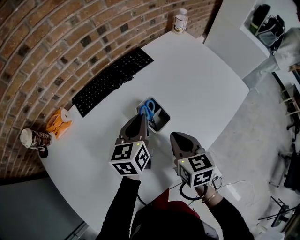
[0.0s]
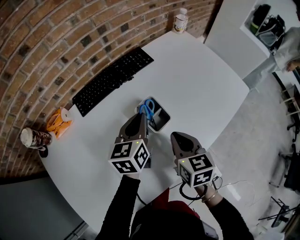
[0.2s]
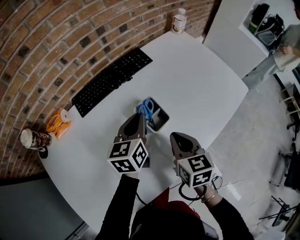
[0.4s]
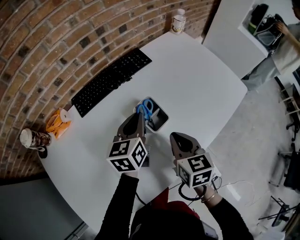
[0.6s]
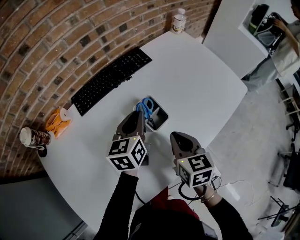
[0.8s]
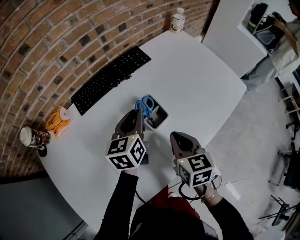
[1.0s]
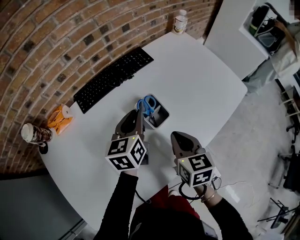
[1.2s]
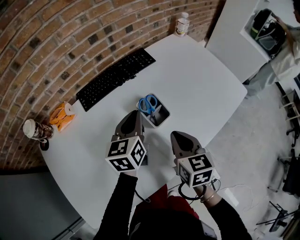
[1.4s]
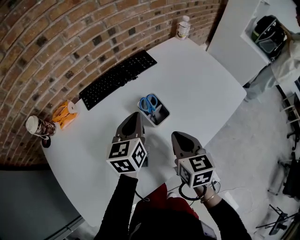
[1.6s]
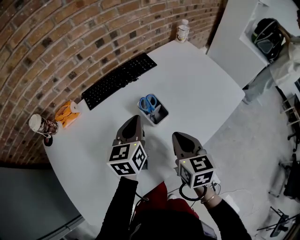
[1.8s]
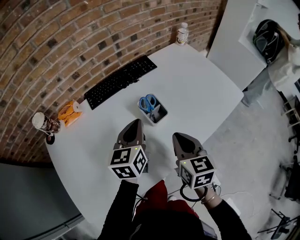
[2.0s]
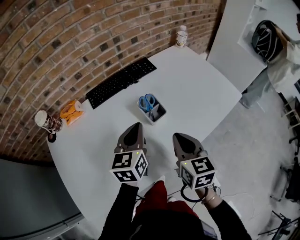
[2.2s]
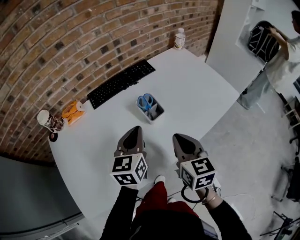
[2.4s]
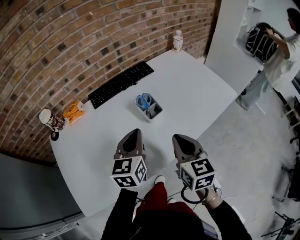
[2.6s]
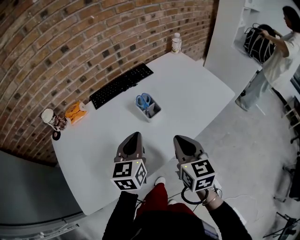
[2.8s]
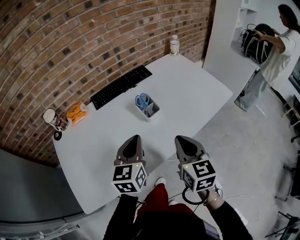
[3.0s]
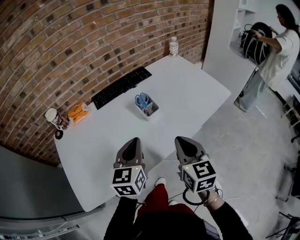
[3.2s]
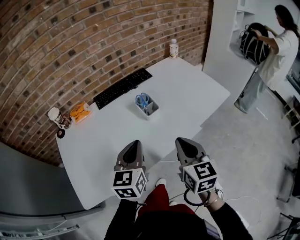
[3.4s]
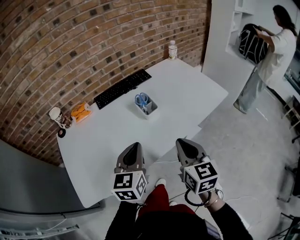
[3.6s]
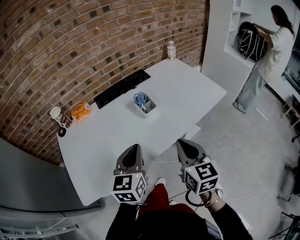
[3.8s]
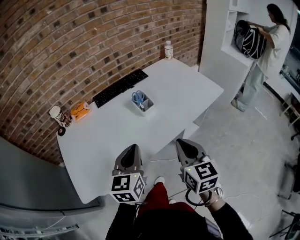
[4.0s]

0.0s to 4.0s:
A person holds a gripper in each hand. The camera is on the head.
0.0s to 1.4s: The grippers move only a little.
1.4s to 2.6s: The left gripper moves backward, about 15 cm, while the right gripper moves backward and upward, roughly 10 cm.
2.6s to 4.0s: The two grippers go about 15 cm backward.

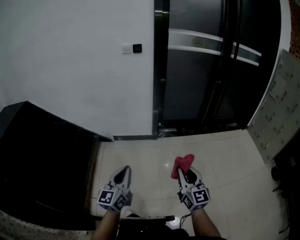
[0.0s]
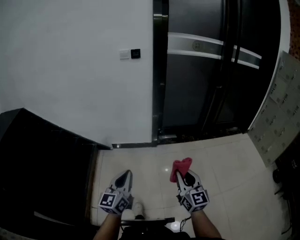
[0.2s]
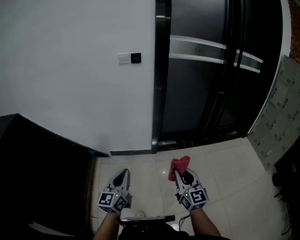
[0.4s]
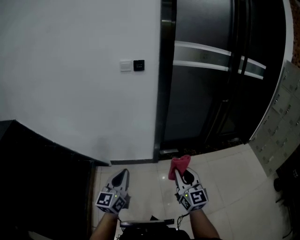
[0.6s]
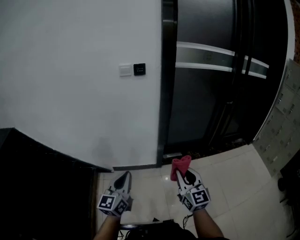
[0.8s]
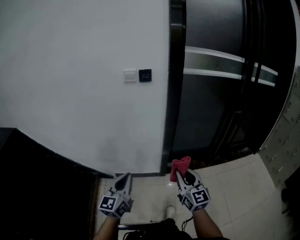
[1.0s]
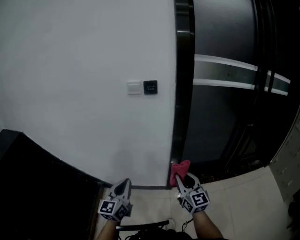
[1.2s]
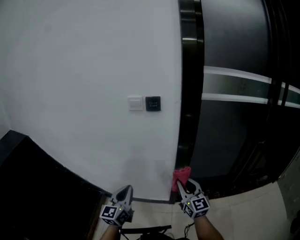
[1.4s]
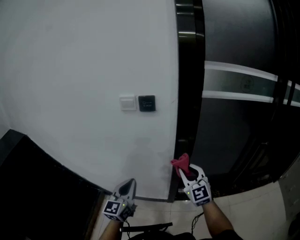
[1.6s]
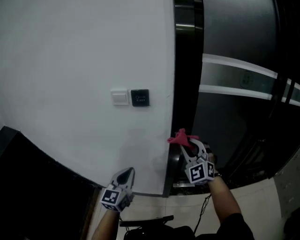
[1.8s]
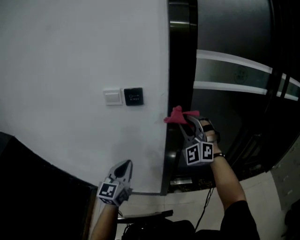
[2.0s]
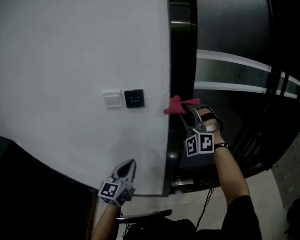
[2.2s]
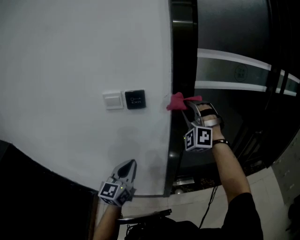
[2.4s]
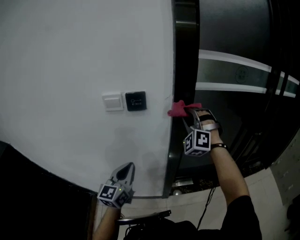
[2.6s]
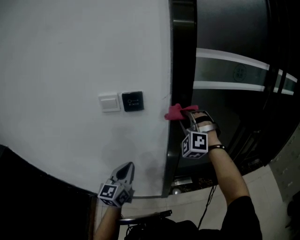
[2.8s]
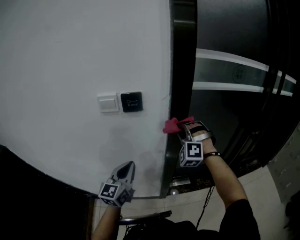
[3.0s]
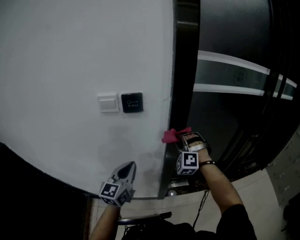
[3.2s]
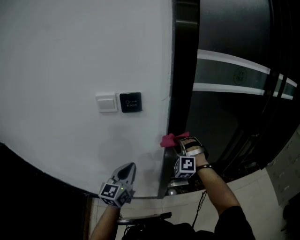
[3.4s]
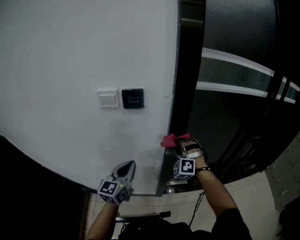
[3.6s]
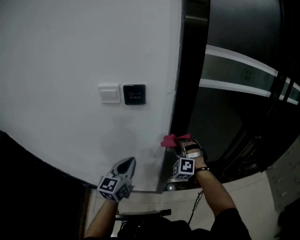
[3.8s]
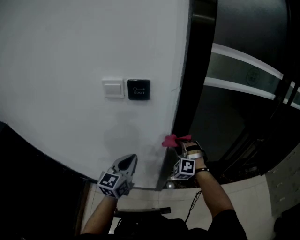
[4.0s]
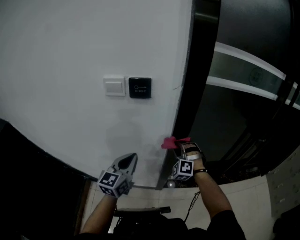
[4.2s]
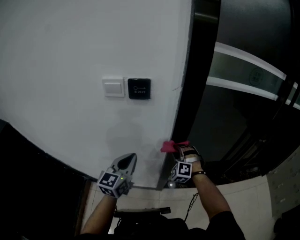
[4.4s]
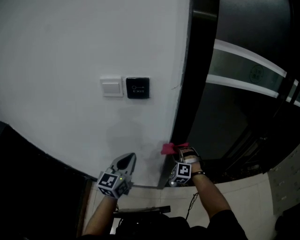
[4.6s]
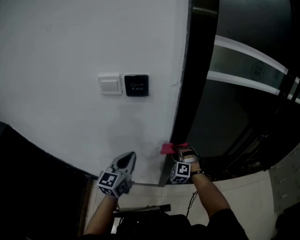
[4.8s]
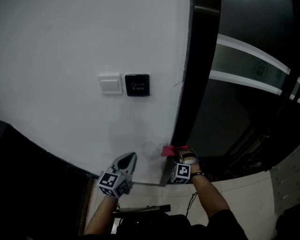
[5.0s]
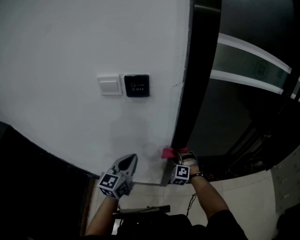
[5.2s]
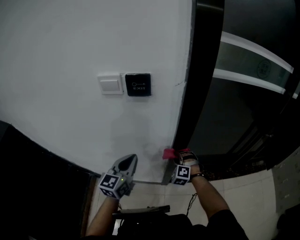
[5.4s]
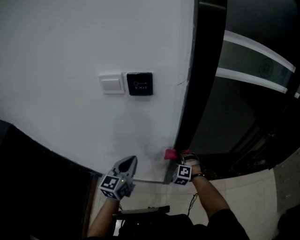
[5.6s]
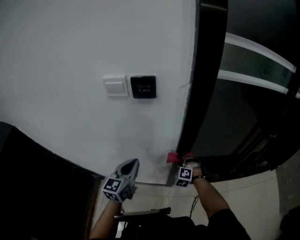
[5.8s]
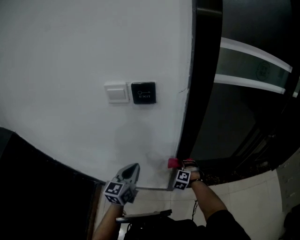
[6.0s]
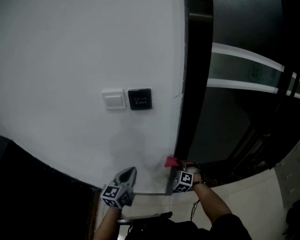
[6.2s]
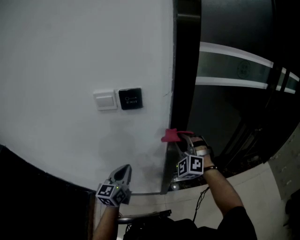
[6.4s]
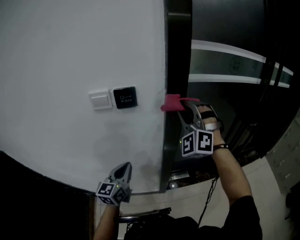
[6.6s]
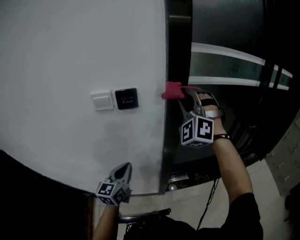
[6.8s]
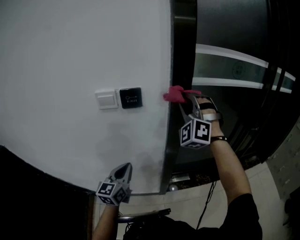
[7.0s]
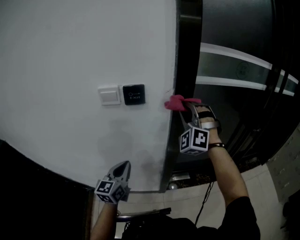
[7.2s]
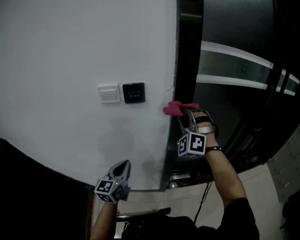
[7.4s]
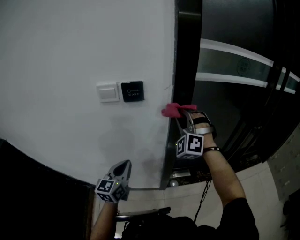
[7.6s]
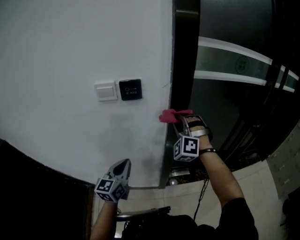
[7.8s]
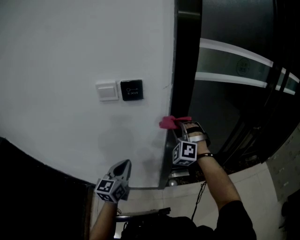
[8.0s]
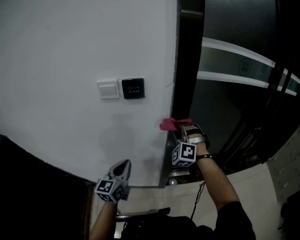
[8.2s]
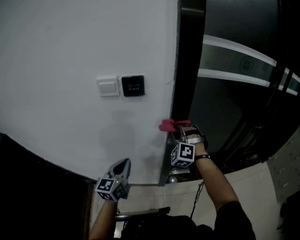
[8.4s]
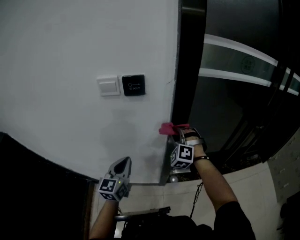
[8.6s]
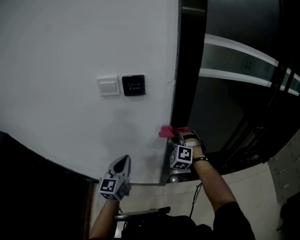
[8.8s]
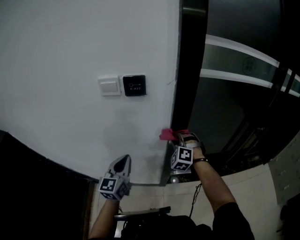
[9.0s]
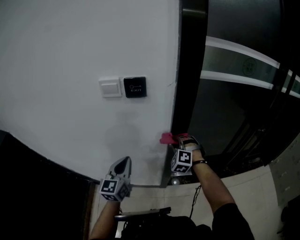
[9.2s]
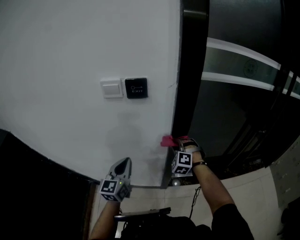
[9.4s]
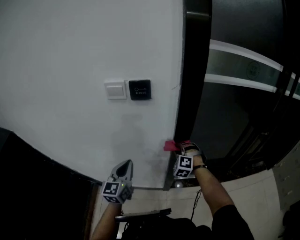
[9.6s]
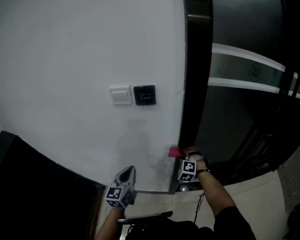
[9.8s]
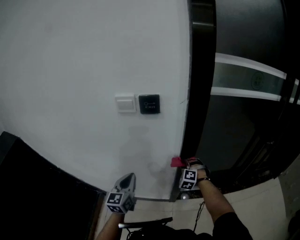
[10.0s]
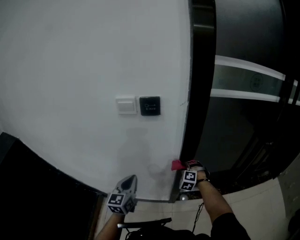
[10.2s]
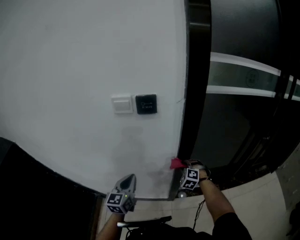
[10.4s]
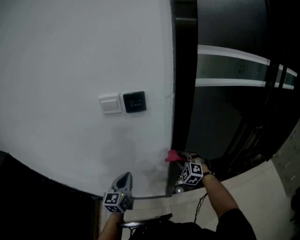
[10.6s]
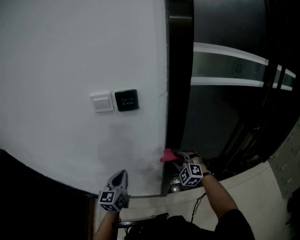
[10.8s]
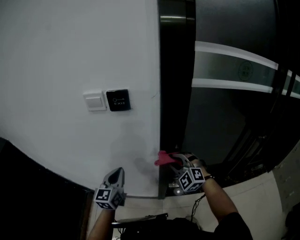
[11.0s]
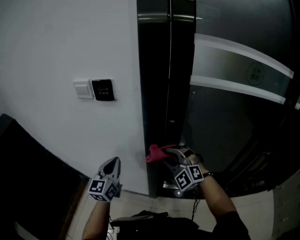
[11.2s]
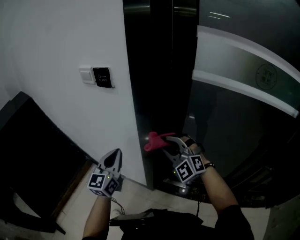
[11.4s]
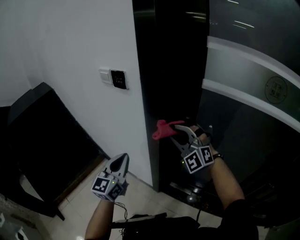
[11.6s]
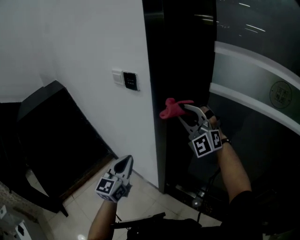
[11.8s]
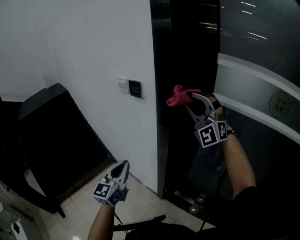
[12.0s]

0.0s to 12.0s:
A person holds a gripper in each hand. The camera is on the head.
0.0s to 1.6s: The two grippers travel together, forward, roughly 70 cm. The right gripper changes its angle by some 30 degrees.
1.6s to 3.0s: Both grippers travel together forward, some 15 cm. The right gripper rotates around the line of its fingers by about 60 degrees, counterclockwise from behind.
3.0s to 4.4s: The right gripper goes some 20 cm downward.
4.4s to 6.0s: The right gripper goes roughly 15 cm downward, and changes its angle by about 20 degrees; the left gripper shifts by approximately 5 cm.
6.0s to 7.6s: The right gripper shifts some 35 cm upward, and angles its fingers upward, by some 40 degrees.
7.6s to 9.0s: The right gripper heads downward, covering approximately 20 cm, and rotates approximately 20 degrees.
9.0s to 10.4s: The right gripper is displaced downward by approximately 10 cm.
10.4s to 12.0s: The left gripper moves roughly 25 cm, and changes its angle by roughly 30 degrees. The right gripper shifts some 40 cm upward, and points its fingers some 50 degrees further upward.

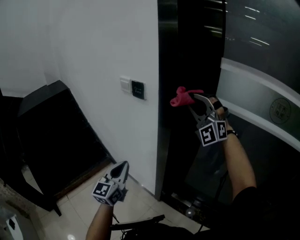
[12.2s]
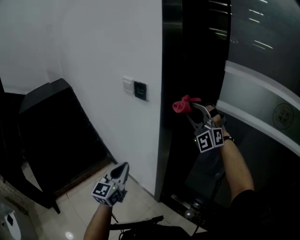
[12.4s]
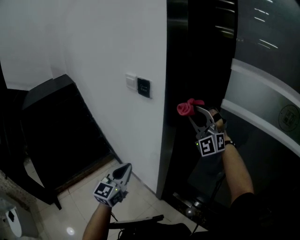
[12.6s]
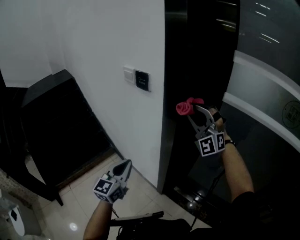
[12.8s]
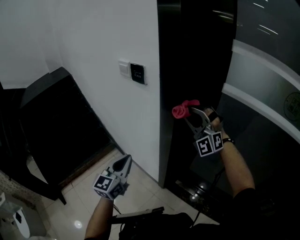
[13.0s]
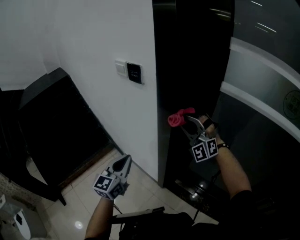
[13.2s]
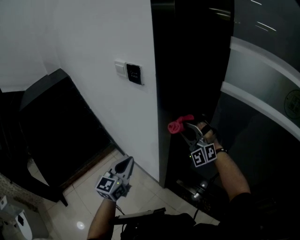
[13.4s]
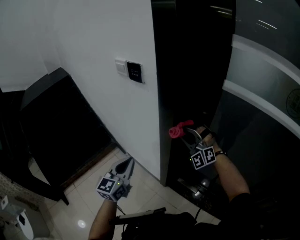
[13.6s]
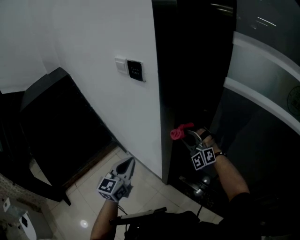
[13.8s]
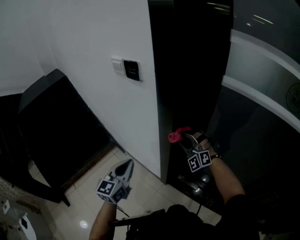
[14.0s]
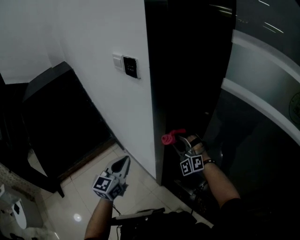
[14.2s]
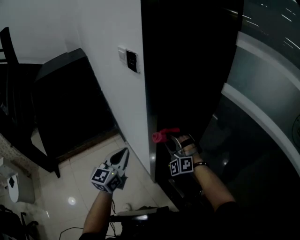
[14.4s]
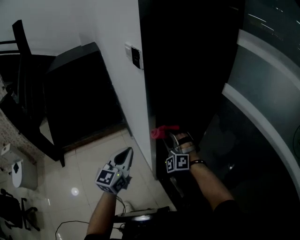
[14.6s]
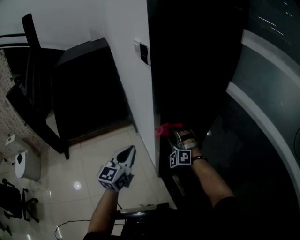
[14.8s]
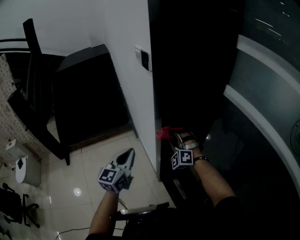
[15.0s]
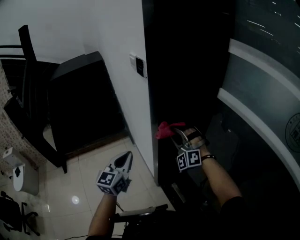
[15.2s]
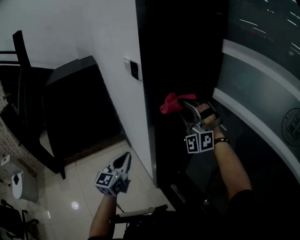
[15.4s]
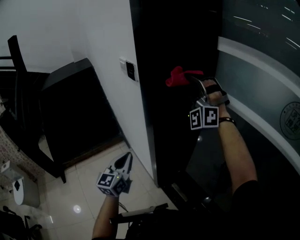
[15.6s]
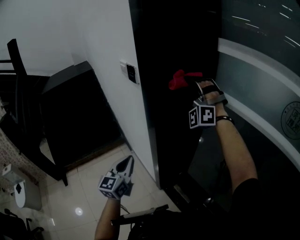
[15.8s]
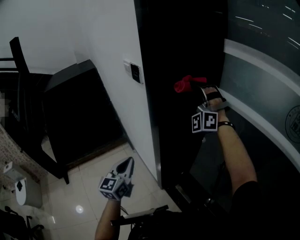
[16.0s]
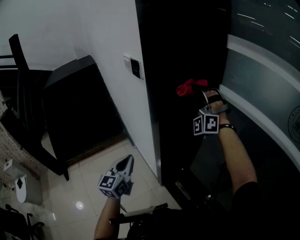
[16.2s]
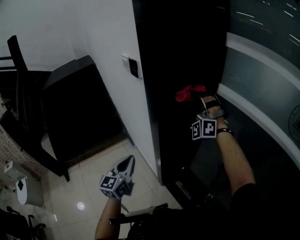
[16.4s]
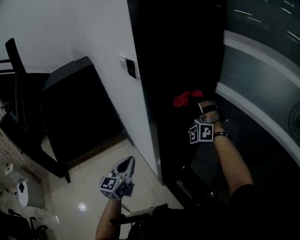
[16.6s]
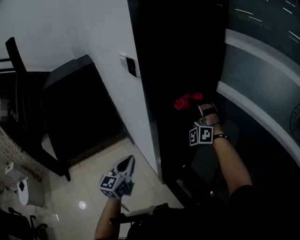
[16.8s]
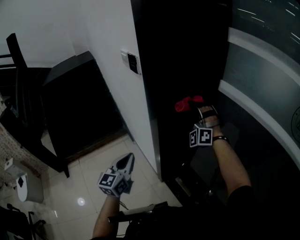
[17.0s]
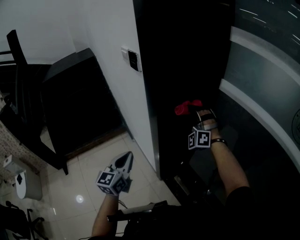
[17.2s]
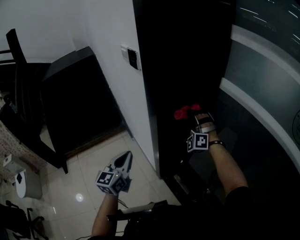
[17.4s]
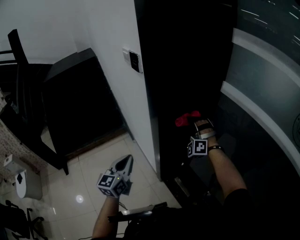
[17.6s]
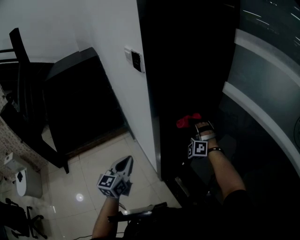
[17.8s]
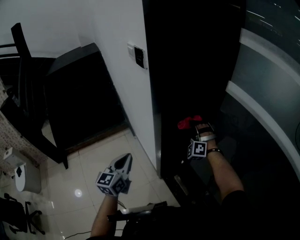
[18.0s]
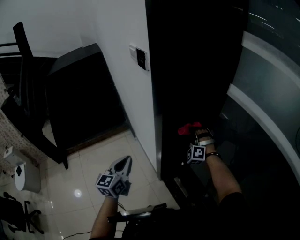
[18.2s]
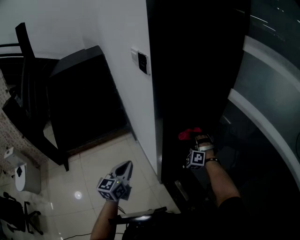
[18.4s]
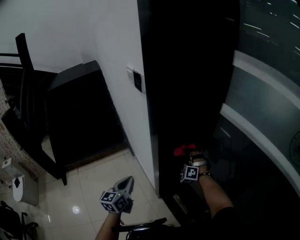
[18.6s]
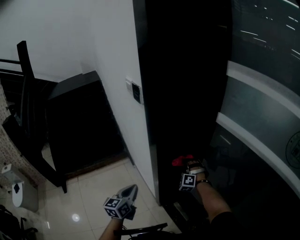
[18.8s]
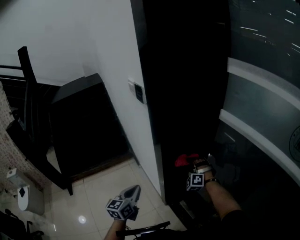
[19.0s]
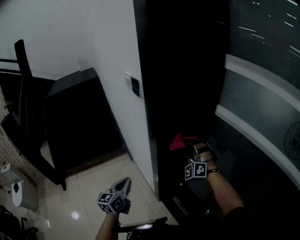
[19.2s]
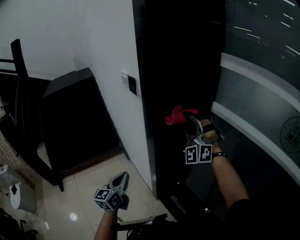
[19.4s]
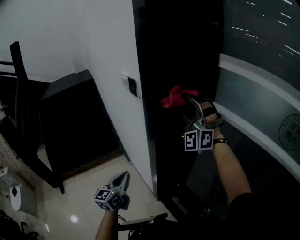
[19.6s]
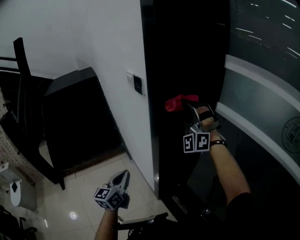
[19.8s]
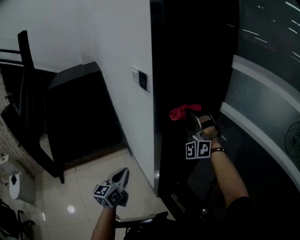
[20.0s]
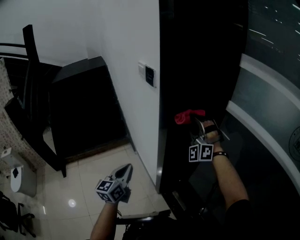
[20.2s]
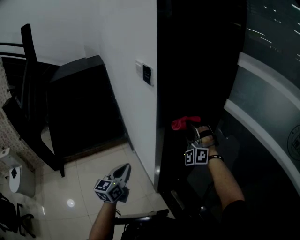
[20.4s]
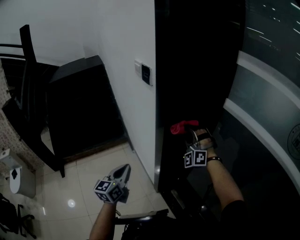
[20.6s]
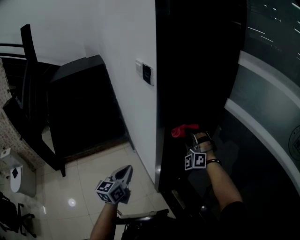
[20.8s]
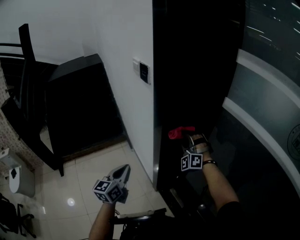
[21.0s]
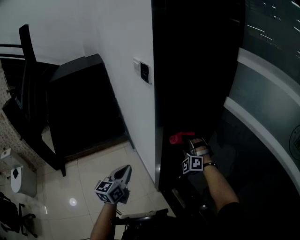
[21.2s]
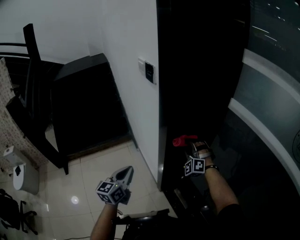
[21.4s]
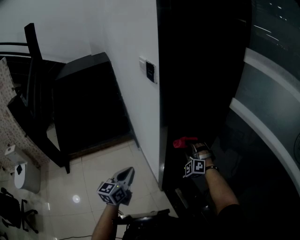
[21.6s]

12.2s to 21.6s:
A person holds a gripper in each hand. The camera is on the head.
12.2s to 13.8s: The right gripper travels downward by about 30 cm, and rotates about 20 degrees; the left gripper shifts roughly 5 cm downward.
13.8s to 15.4s: The right gripper heads upward, covering approximately 20 cm, and changes its angle by about 20 degrees, while the left gripper moves to the right and backward, some 10 cm, and turns by roughly 20 degrees.
15.4s to 17.0s: The right gripper goes some 15 cm downward and forward.
17.0s to 18.4s: The right gripper shifts some 20 cm downward, and rotates roughly 20 degrees. The left gripper moves some 5 cm.
18.4s to 20.0s: The right gripper shifts about 30 cm upward, and changes its angle by roughly 30 degrees.
20.0s to 21.6s: The right gripper heads downward, covering about 25 cm, and turns by some 30 degrees.
